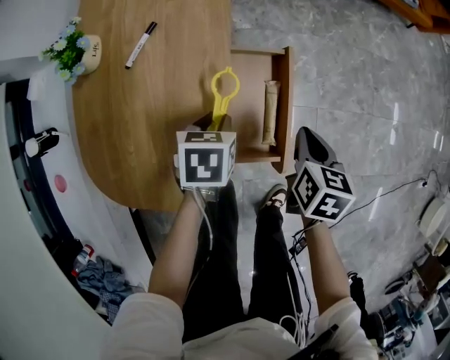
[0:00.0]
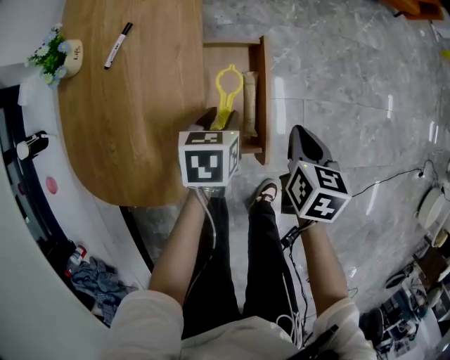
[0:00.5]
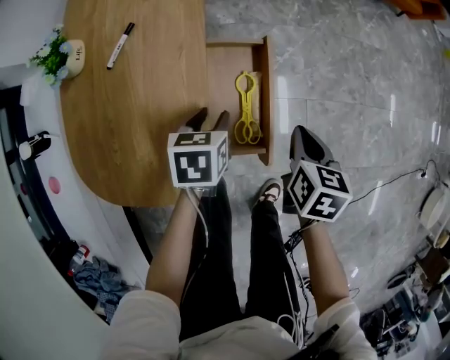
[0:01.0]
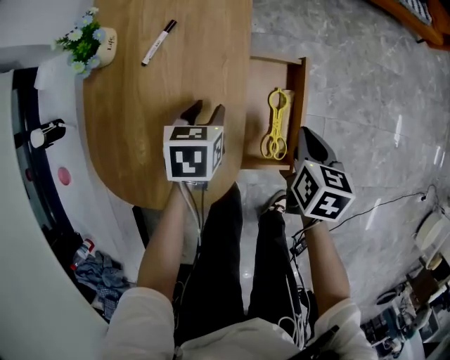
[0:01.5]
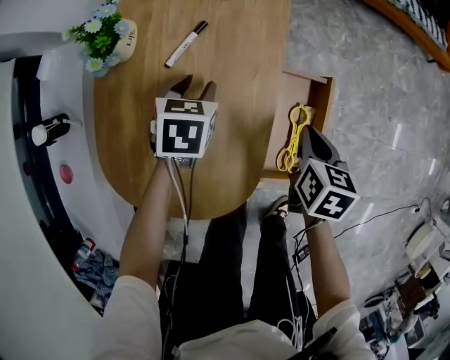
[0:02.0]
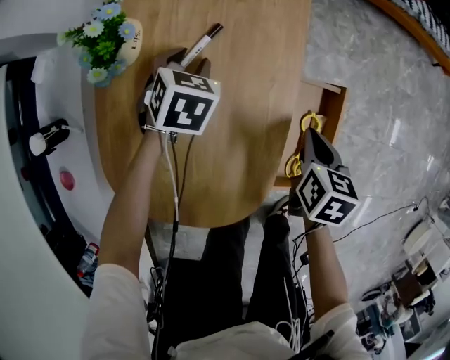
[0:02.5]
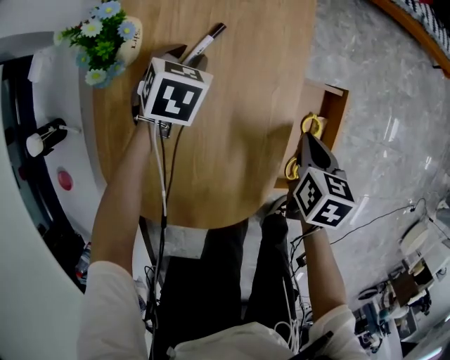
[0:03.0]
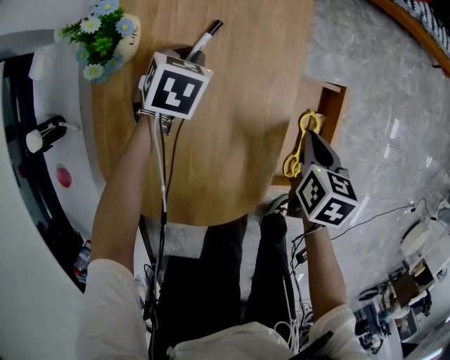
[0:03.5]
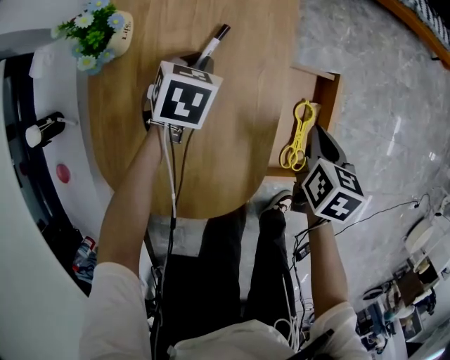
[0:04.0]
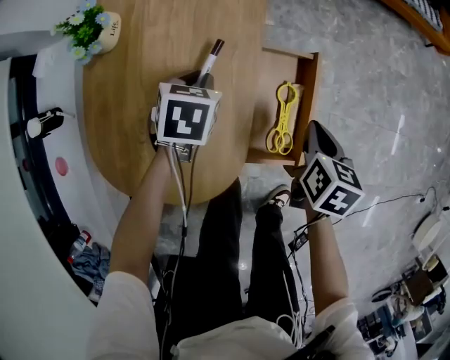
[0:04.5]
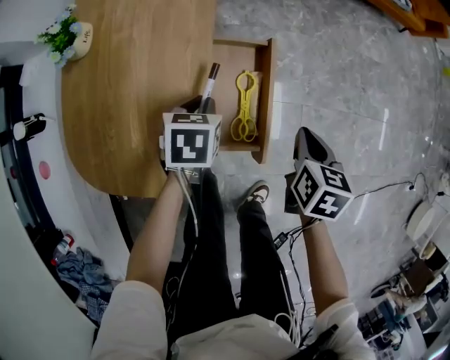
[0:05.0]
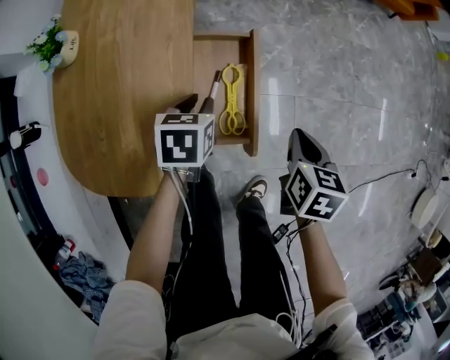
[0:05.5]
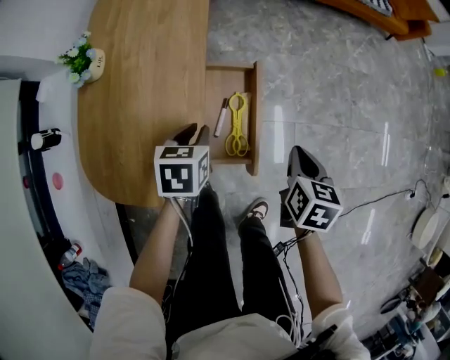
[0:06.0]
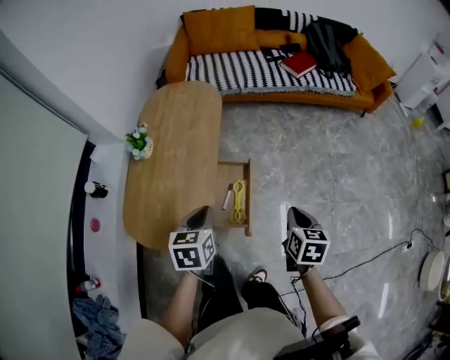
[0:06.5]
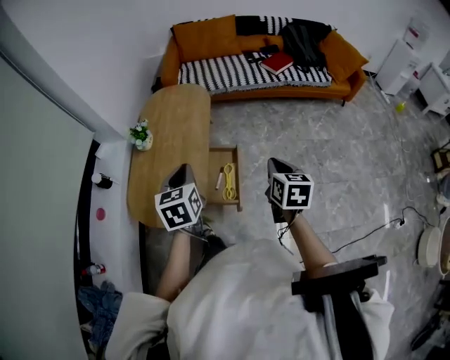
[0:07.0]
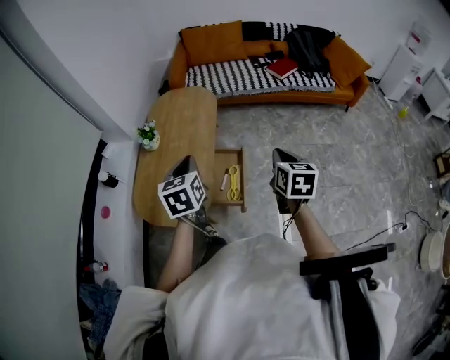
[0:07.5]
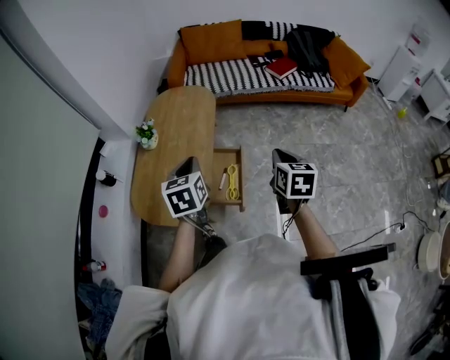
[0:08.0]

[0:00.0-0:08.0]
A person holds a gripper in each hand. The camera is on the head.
0:00.0 to 0:02.0: The left gripper goes roughly 20 cm to the left and forward. The right gripper shifts some 15 cm to the left and forward.
0:02.0 to 0:04.0: The left gripper closes its fingers.
0:04.0 to 0:06.0: Both grippers move to the right, backward and upward, about 25 cm.
0:06.0 to 0:08.0: Both grippers travel together upward, roughly 35 cm. The right gripper turns by roughly 20 degrees; the left gripper changes its angle by about 30 degrees.

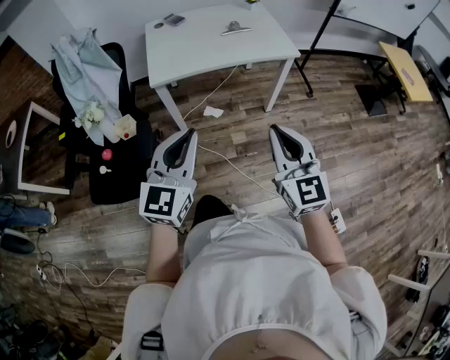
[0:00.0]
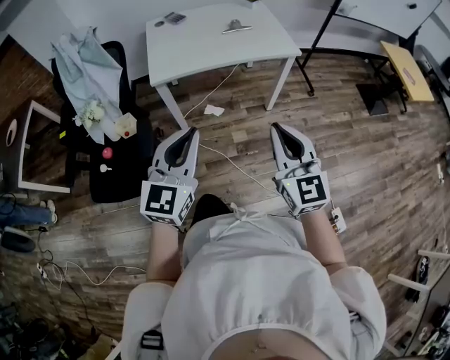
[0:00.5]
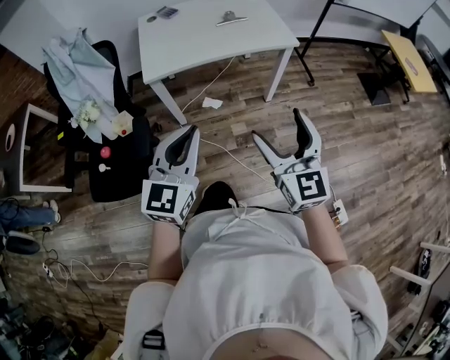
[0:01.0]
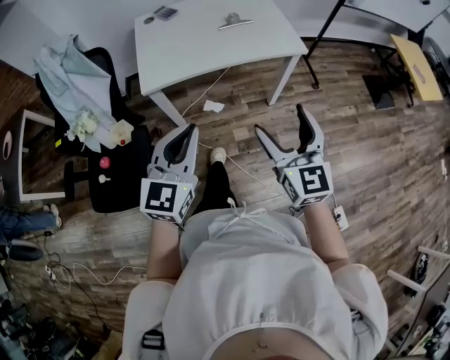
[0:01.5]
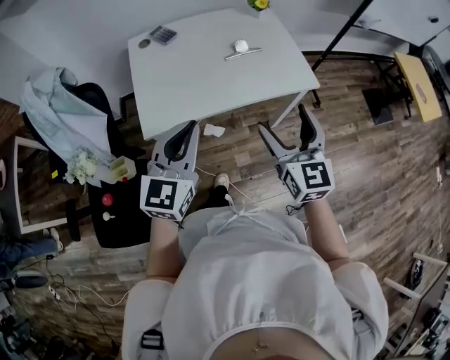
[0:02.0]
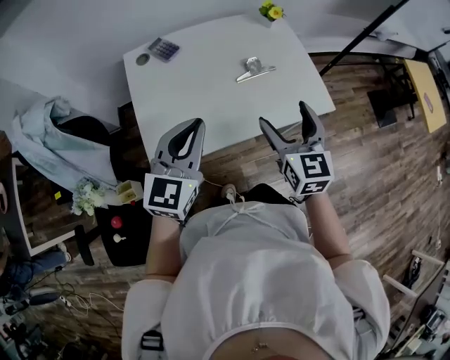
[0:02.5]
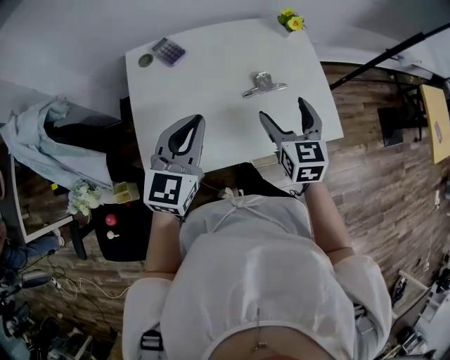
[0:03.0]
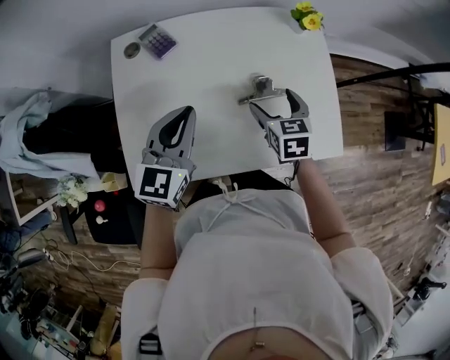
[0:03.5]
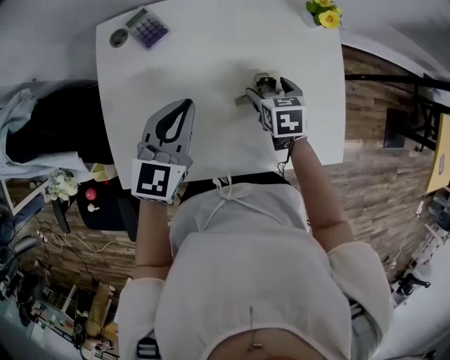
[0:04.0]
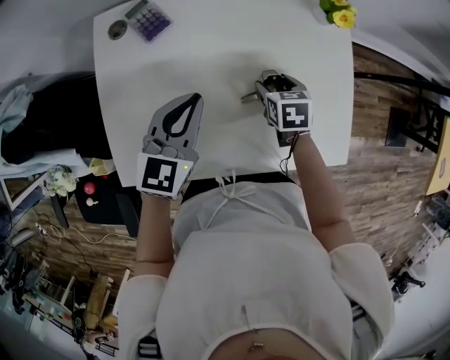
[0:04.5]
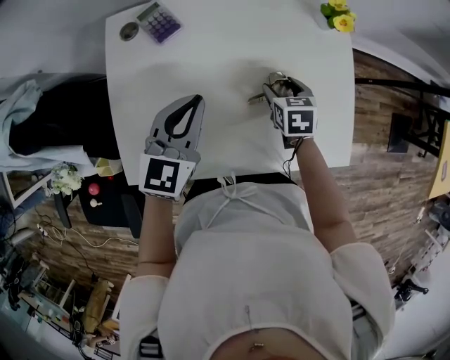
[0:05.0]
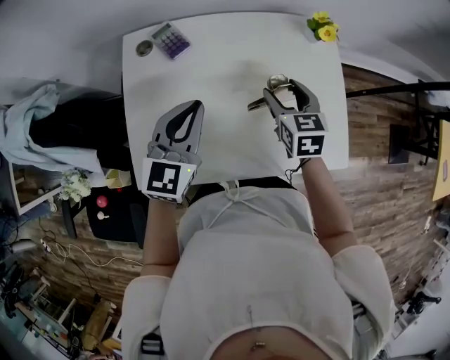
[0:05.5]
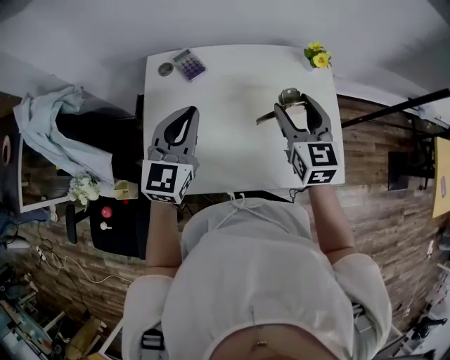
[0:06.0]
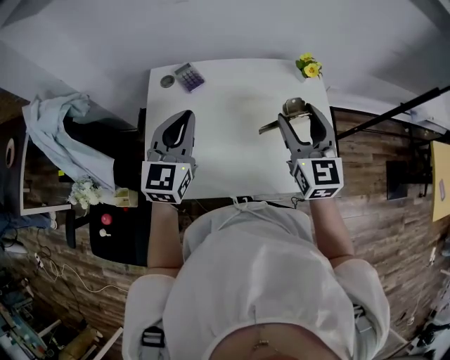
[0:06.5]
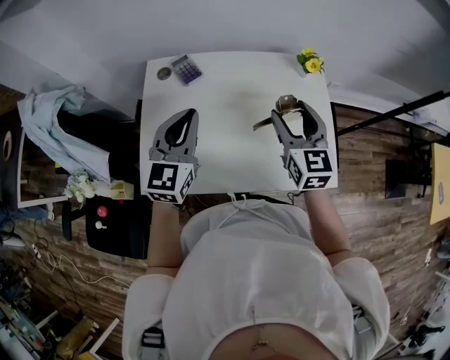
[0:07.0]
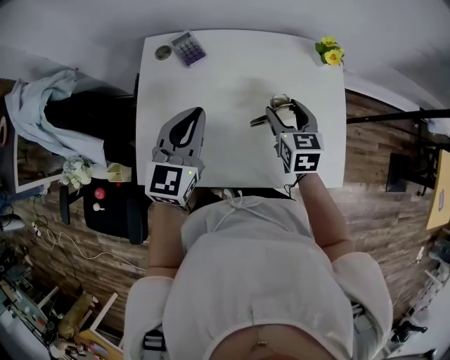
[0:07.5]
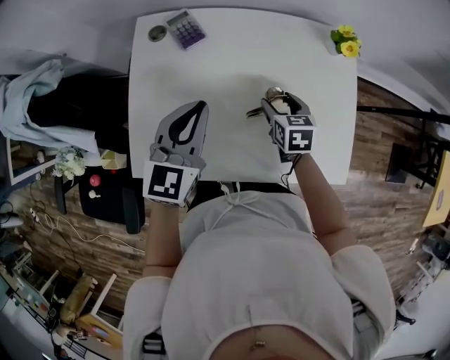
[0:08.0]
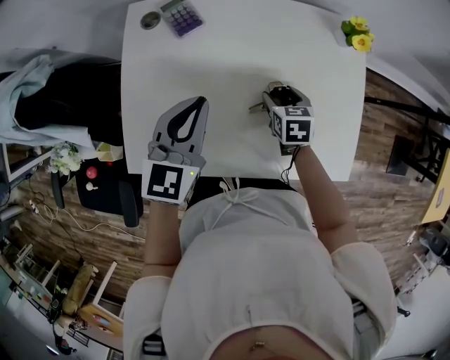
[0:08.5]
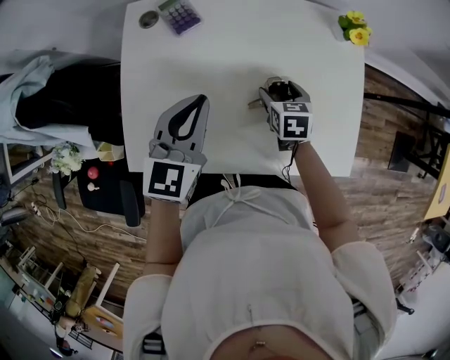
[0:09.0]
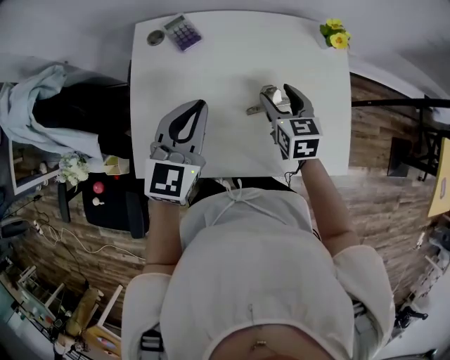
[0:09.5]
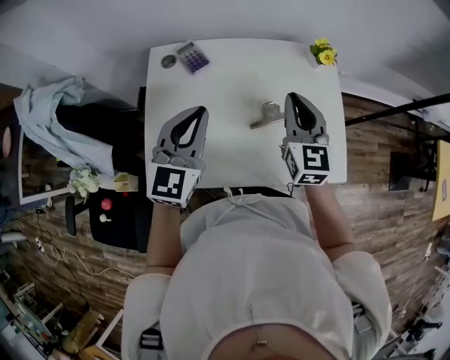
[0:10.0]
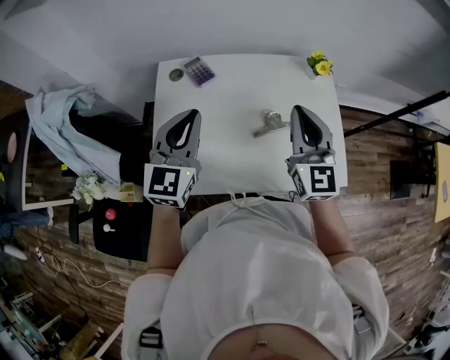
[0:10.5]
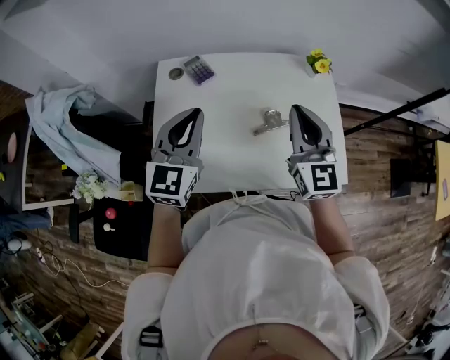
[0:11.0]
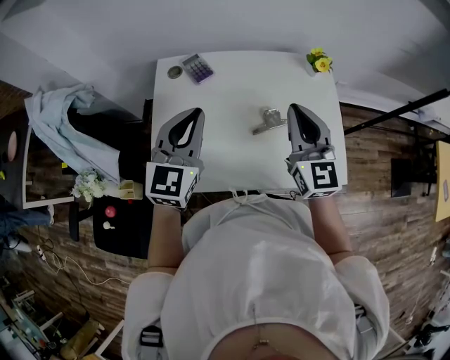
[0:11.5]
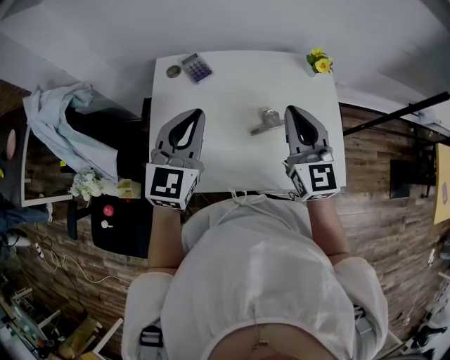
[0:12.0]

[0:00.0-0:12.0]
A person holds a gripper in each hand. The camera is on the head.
0:00.0 to 0:02.0: The two grippers go approximately 35 cm forward. The right gripper opens.
0:02.0 to 0:04.0: The left gripper travels forward by roughly 40 cm; the right gripper shifts some 50 cm forward and downward, and points its fingers approximately 50 degrees further downward.
0:04.0 to 0:06.0: The left gripper goes roughly 15 cm upward and to the left; the right gripper shifts some 25 cm upward, and angles its fingers upward, by roughly 40 degrees.
0:06.0 to 0:08.0: The right gripper goes about 25 cm downward, and tilts its fingers approximately 30 degrees downward, while the left gripper travels downward by some 10 cm.
0:08.0 to 0:10.0: The left gripper moves upward, roughly 10 cm, while the right gripper is displaced upward by some 25 cm, points its fingers about 40 degrees further upward, and closes.
0:10.0 to 0:12.0: The right gripper travels upward by some 5 cm.

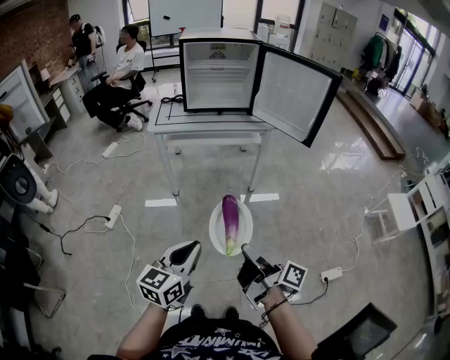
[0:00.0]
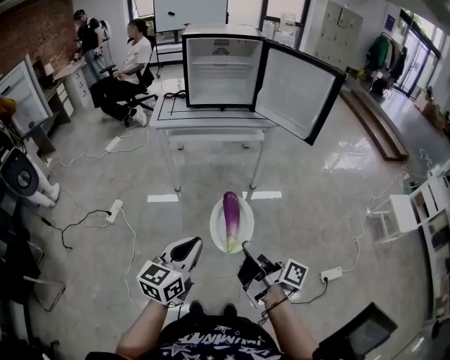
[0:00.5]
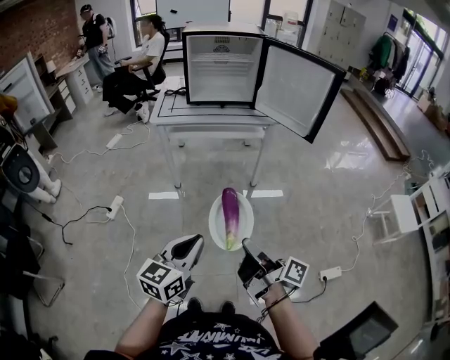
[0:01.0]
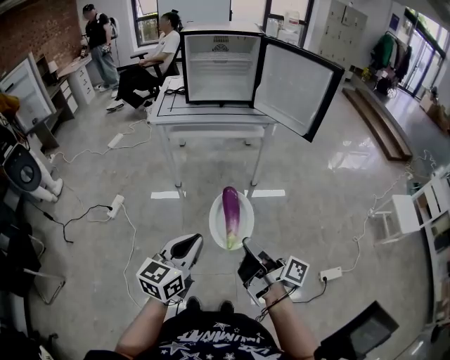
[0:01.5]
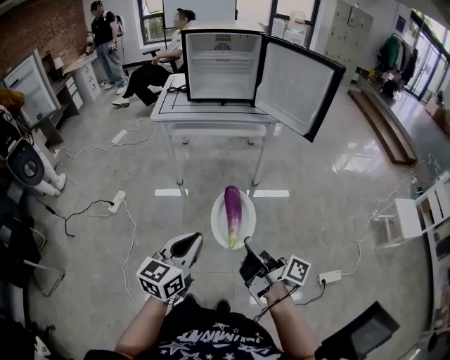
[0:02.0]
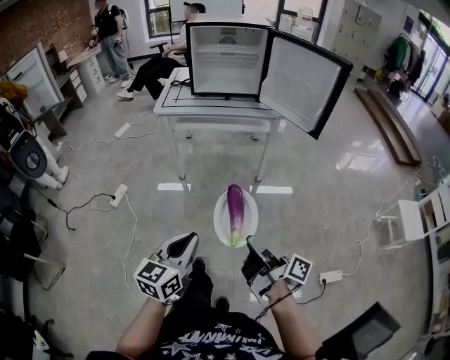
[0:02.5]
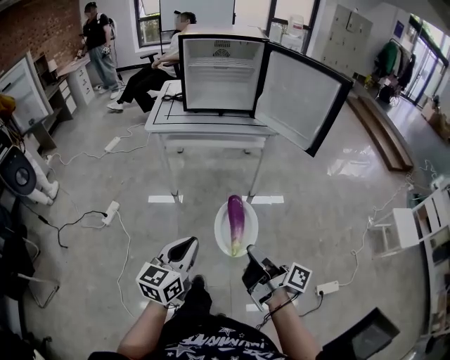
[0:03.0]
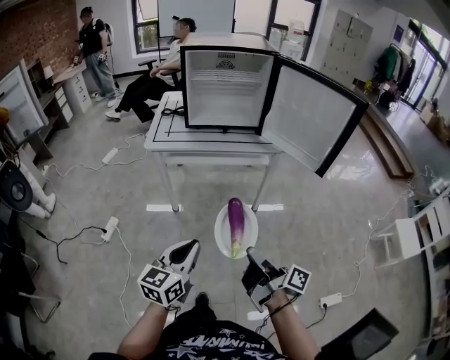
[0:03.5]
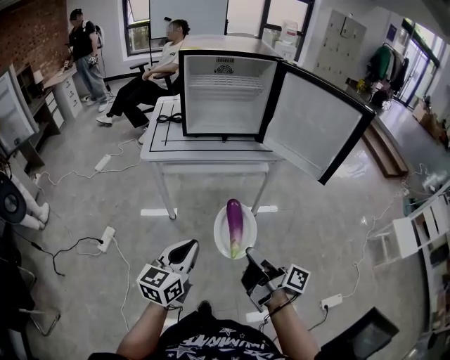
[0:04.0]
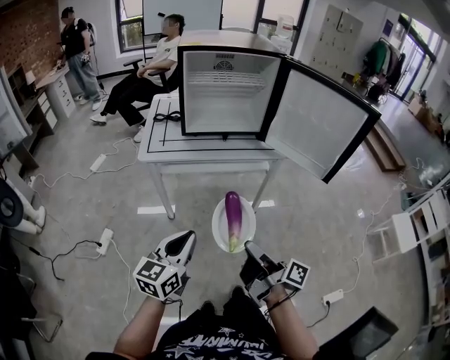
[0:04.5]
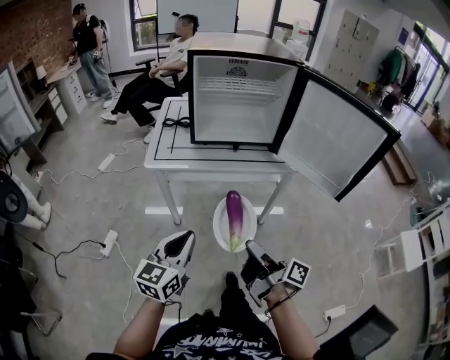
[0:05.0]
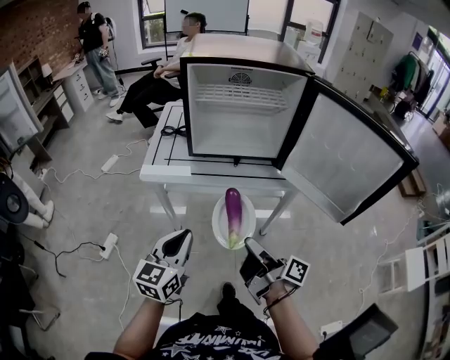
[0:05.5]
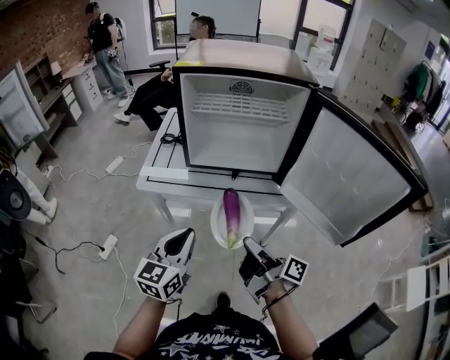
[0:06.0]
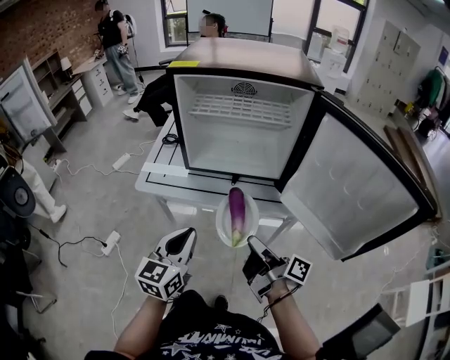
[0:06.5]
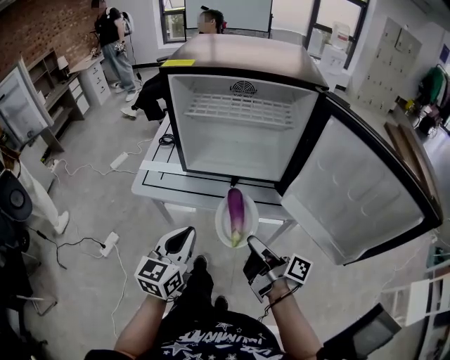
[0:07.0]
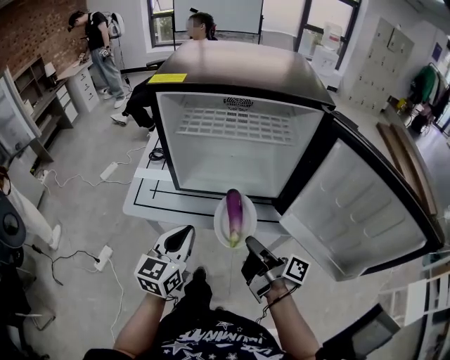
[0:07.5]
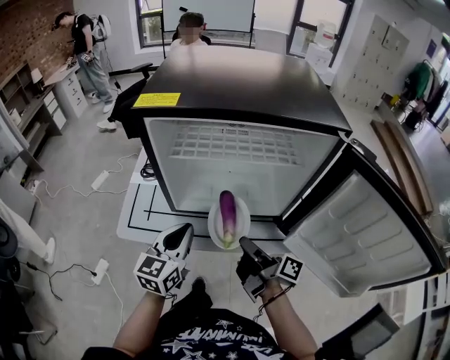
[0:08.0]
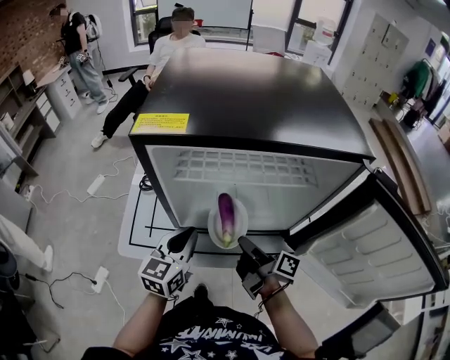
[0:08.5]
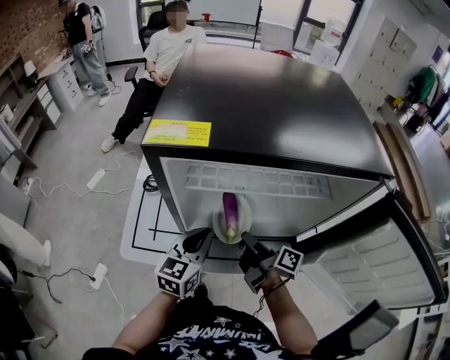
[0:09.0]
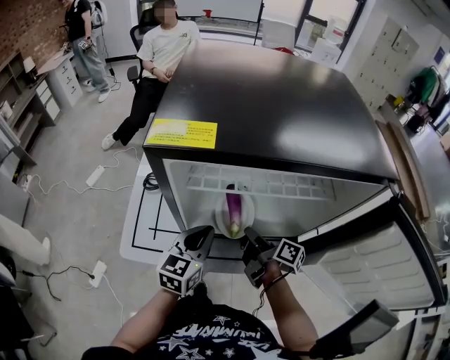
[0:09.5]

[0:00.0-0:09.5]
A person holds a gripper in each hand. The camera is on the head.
0:00.0 to 0:02.0: The left gripper moves about 5 cm.
0:02.0 to 0:04.0: The left gripper changes place by roughly 25 cm.
0:04.0 to 0:05.5: The left gripper changes place by some 20 cm.
0:05.5 to 0:07.5: The left gripper ends up about 20 cm from where it was.
0:07.5 to 0:09.5: The left gripper changes place by roughly 20 cm.
